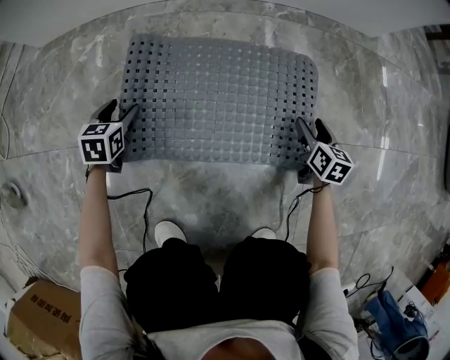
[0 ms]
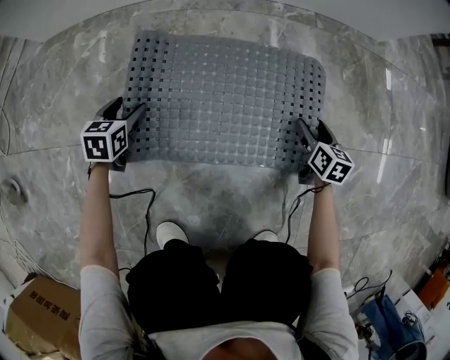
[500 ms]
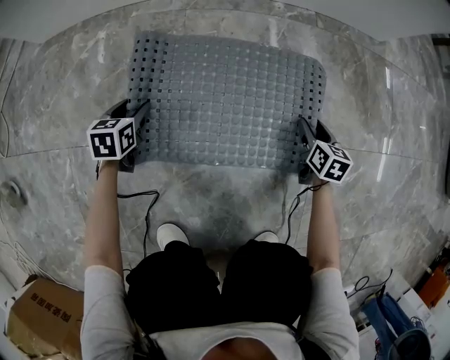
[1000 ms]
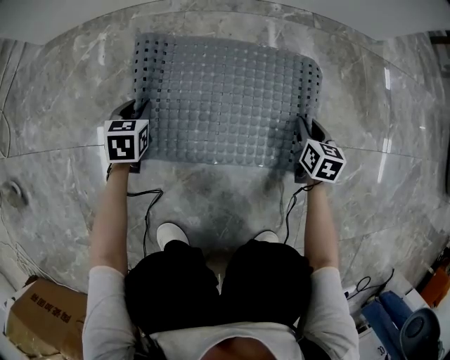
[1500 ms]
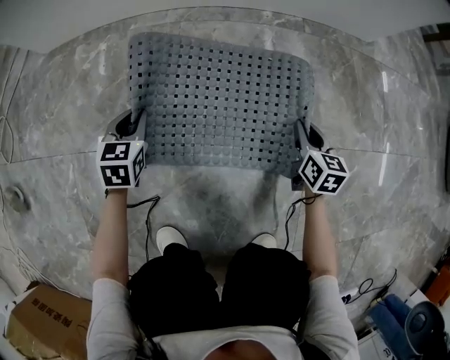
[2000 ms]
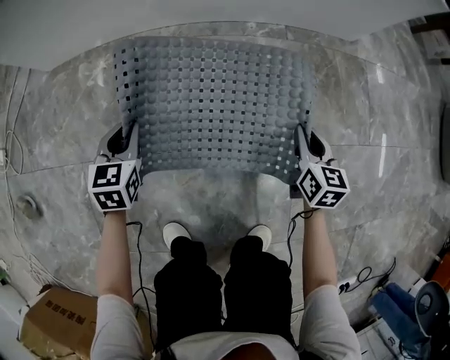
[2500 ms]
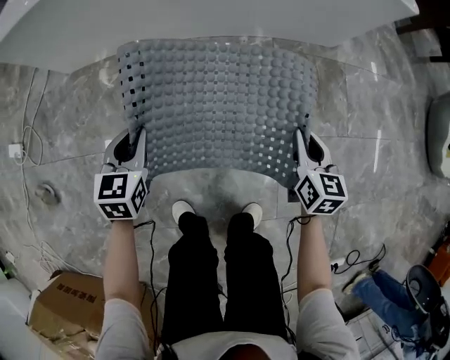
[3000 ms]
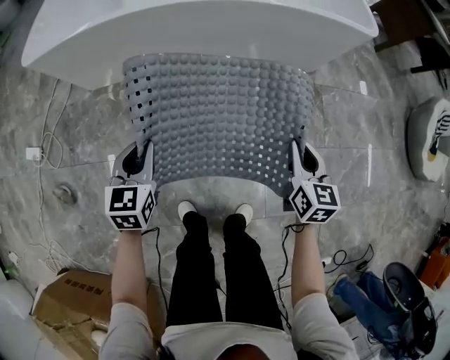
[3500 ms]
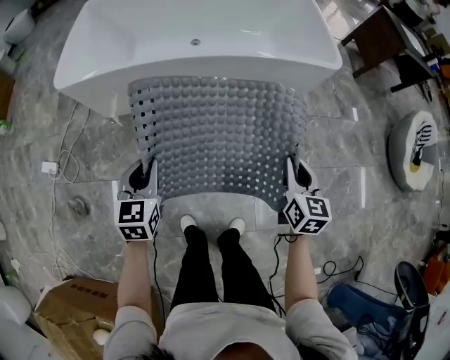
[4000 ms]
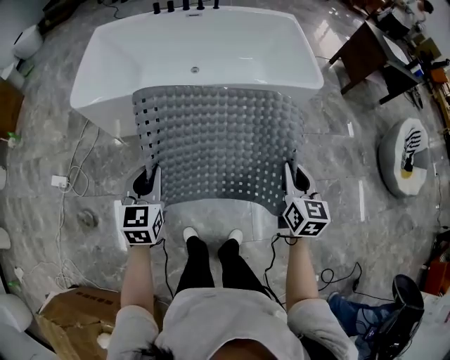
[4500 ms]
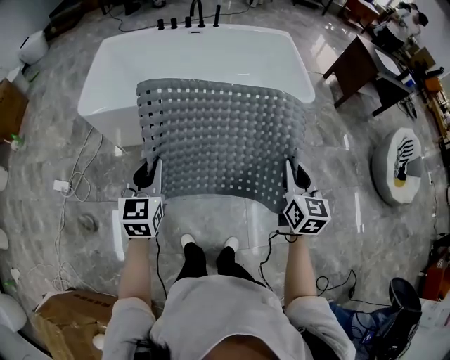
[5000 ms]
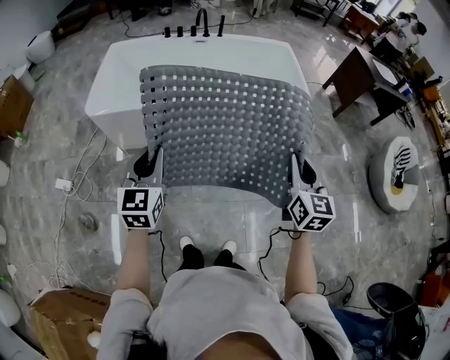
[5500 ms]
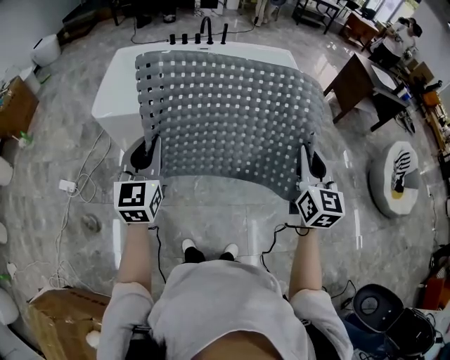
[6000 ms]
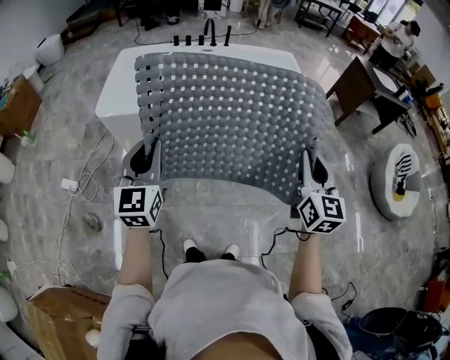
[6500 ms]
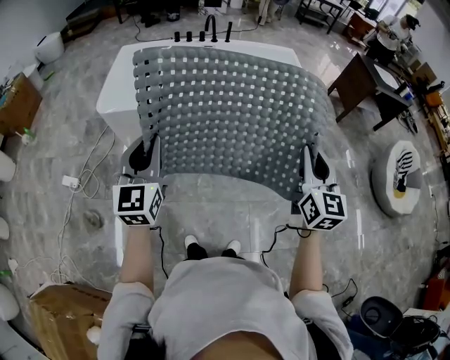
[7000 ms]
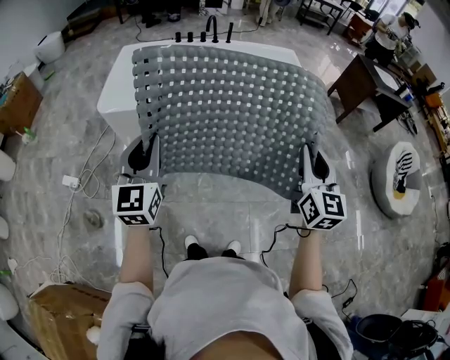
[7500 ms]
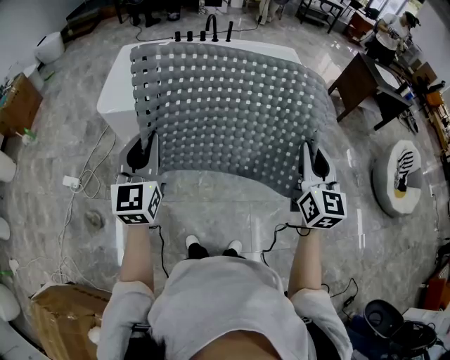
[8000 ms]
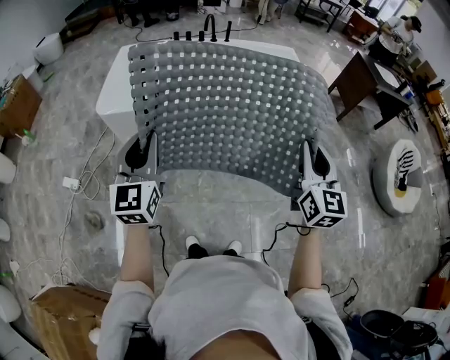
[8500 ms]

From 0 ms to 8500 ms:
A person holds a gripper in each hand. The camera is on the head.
From 0 ms to 2000 ms: The left gripper heads to the right and upward, covering about 10 cm, and closes up, while the right gripper moves approximately 5 cm, and closes.
From 2000 ms to 4000 ms: The grippers both shift upward by about 70 cm.
From 4000 ms to 6500 ms: Both grippers travel together upward, roughly 35 cm. The right gripper turns by some 20 degrees. The left gripper swivels roughly 30 degrees.
From 6500 ms to 8500 ms: There are only small adjustments of the grippers.

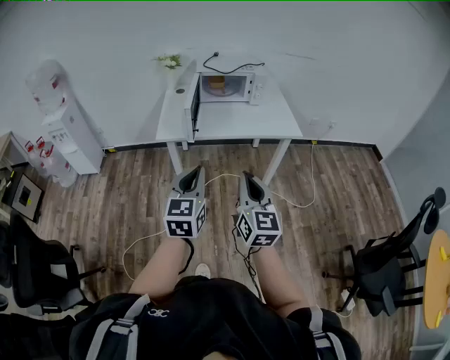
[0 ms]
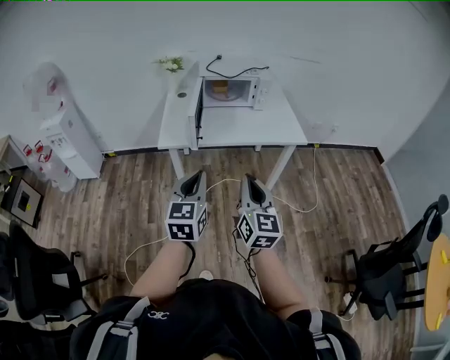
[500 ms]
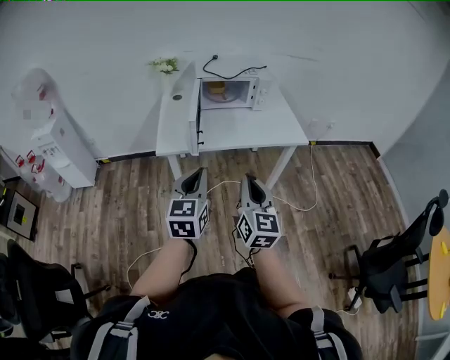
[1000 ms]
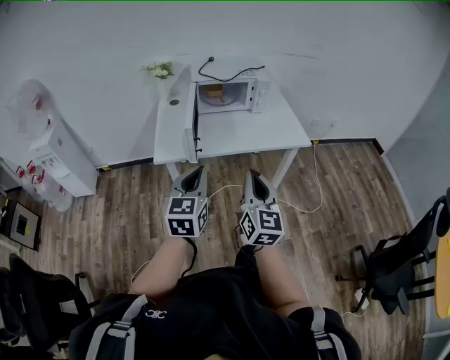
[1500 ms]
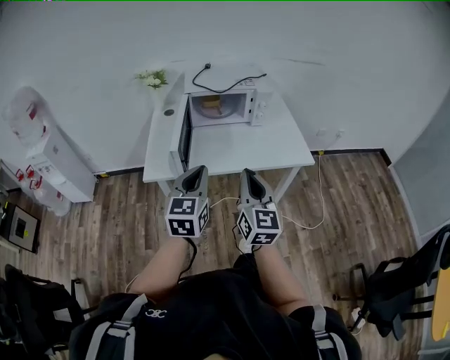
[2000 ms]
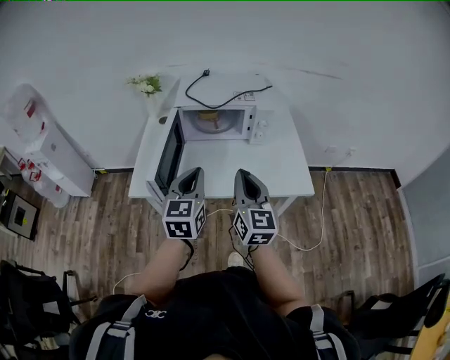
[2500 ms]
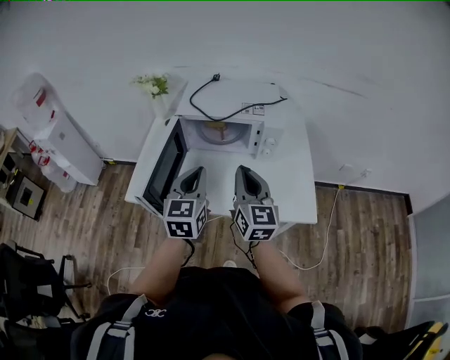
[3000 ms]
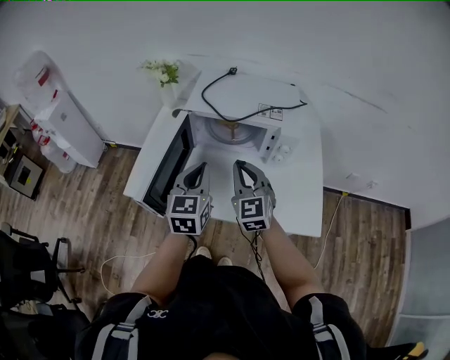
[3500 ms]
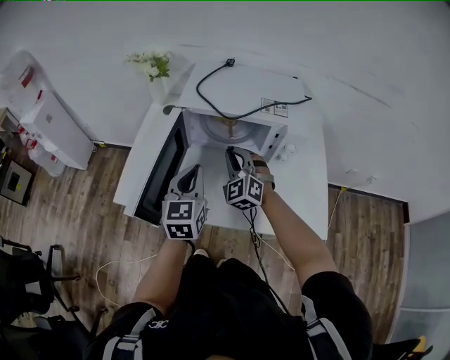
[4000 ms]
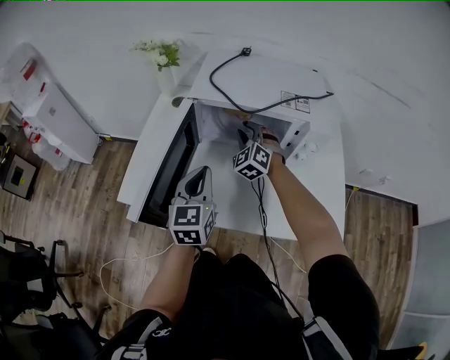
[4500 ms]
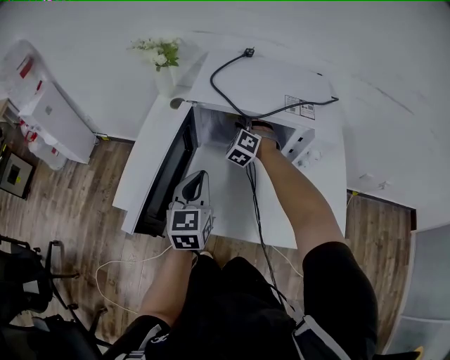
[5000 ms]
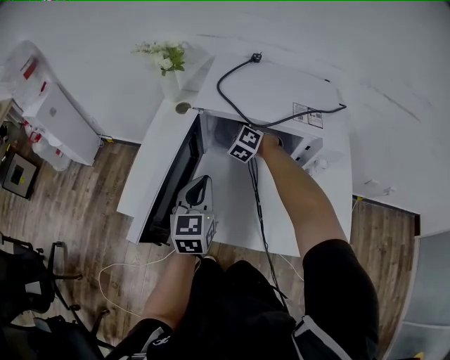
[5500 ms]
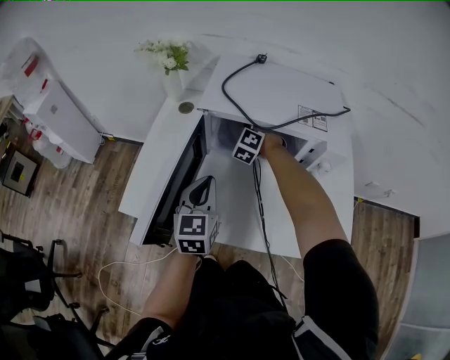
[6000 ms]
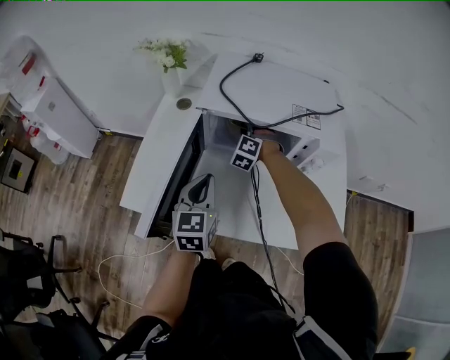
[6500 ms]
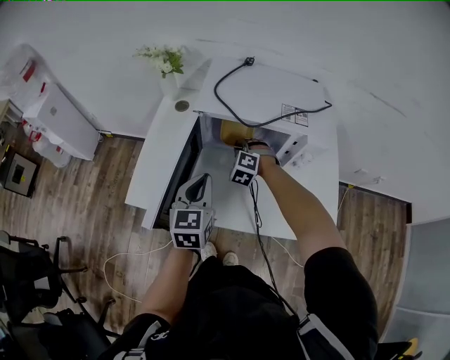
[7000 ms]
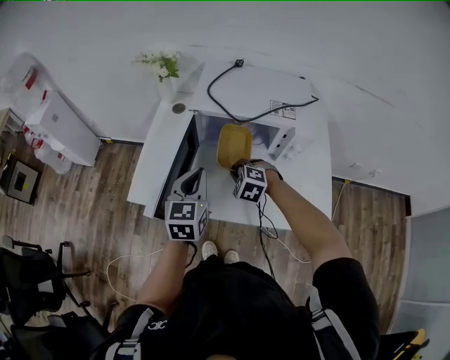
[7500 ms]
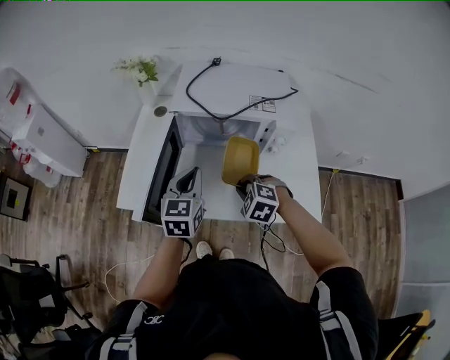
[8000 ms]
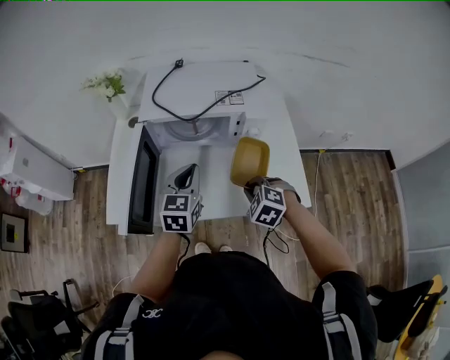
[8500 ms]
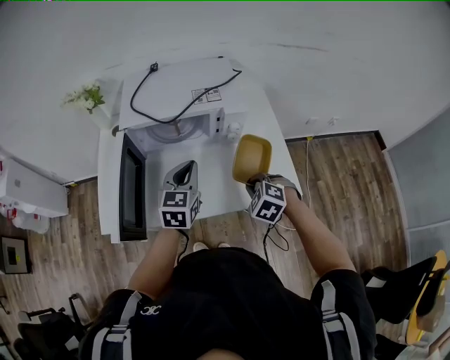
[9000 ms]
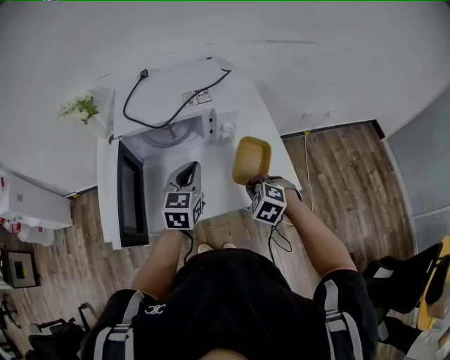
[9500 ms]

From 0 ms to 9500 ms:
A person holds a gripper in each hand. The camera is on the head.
From 0 ms to 2000 ms: Both grippers move forward, about 30 cm.
From 2000 ms to 4000 ms: The grippers both shift forward by roughly 40 cm. The right gripper rotates around the line of its fingers by about 50 degrees, counterclockwise from behind. The left gripper rotates about 20 degrees.
From 4000 ms to 5500 ms: The right gripper moves forward, about 20 cm, rotates roughly 20 degrees, and opens up, while the left gripper moves downward, about 10 cm.
From 5500 ms to 7500 ms: The left gripper moves upward and backward, roughly 10 cm. Meanwhile the right gripper moves backward, about 25 cm, turns by about 40 degrees, and closes.
From 7500 ms to 9500 ms: The left gripper moves about 20 cm, and swivels approximately 20 degrees. The right gripper moves about 25 cm, and changes its angle by approximately 30 degrees.

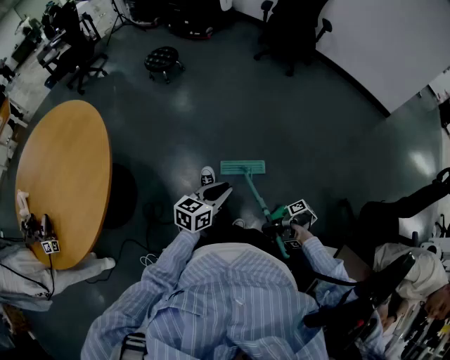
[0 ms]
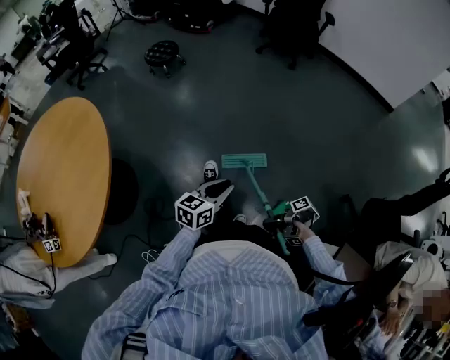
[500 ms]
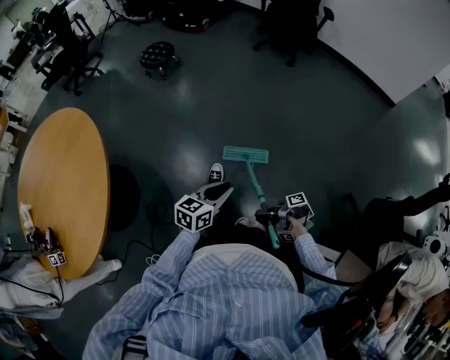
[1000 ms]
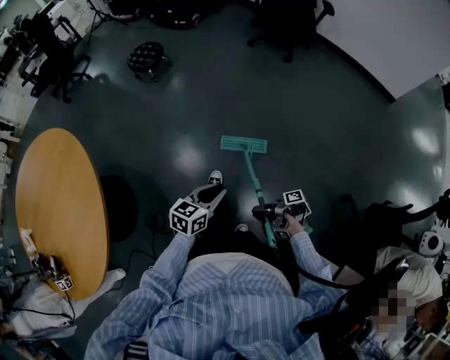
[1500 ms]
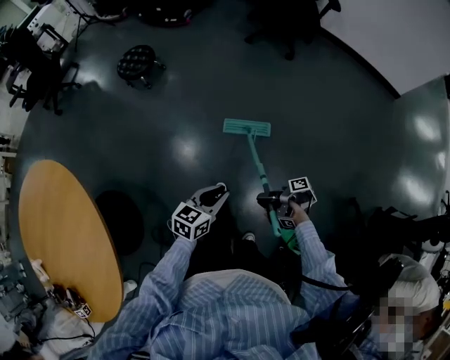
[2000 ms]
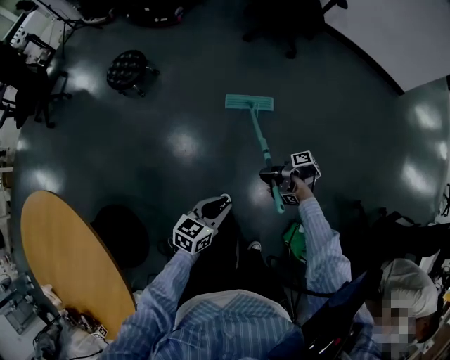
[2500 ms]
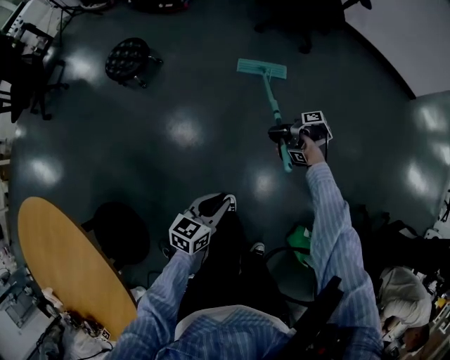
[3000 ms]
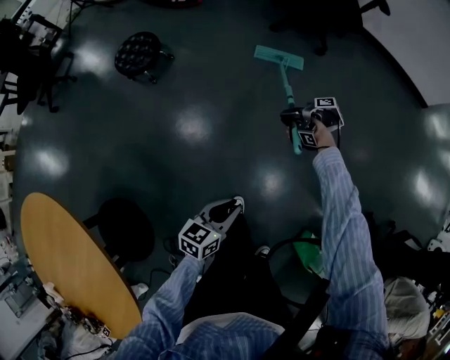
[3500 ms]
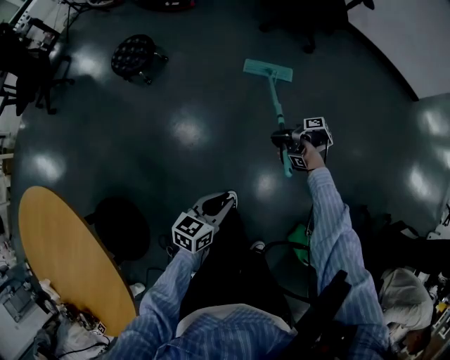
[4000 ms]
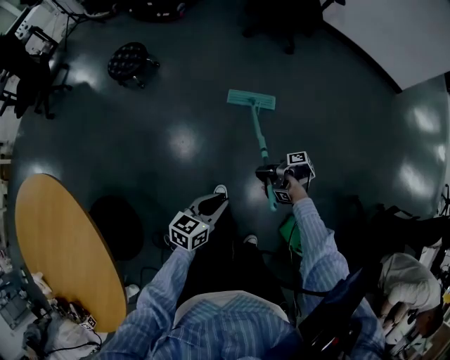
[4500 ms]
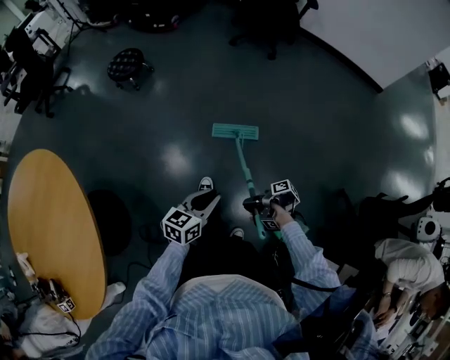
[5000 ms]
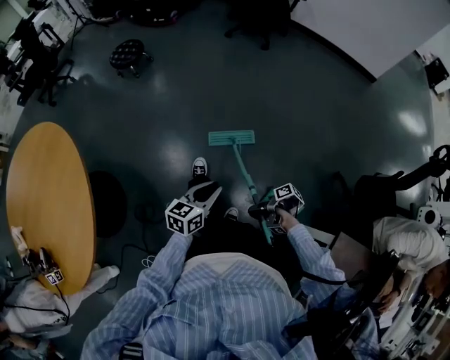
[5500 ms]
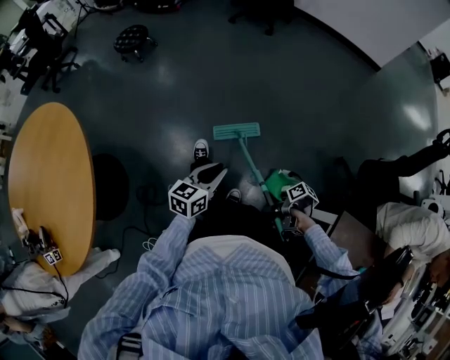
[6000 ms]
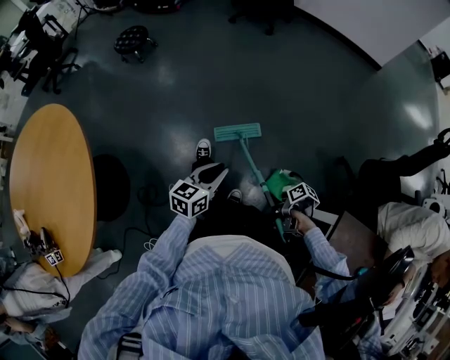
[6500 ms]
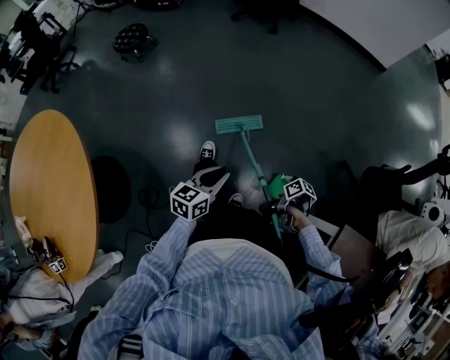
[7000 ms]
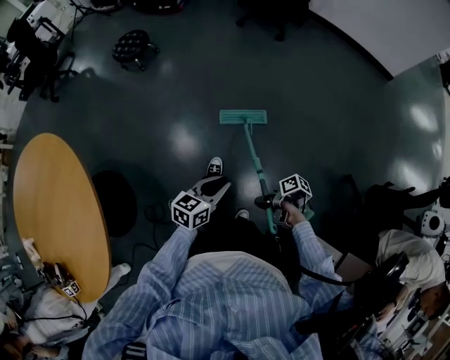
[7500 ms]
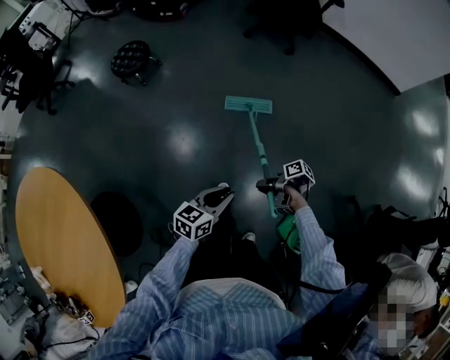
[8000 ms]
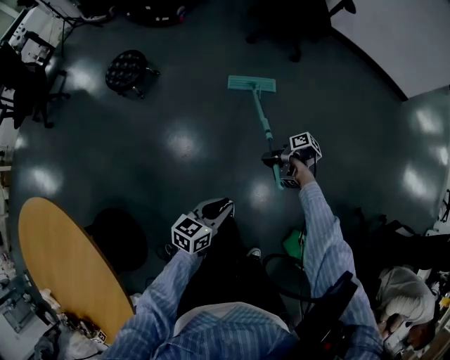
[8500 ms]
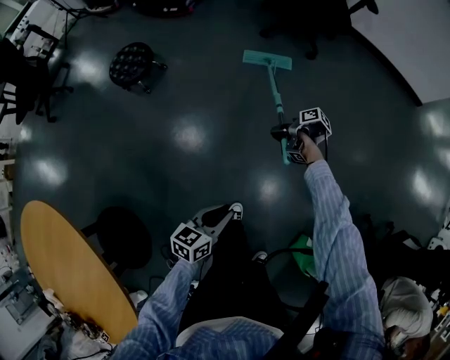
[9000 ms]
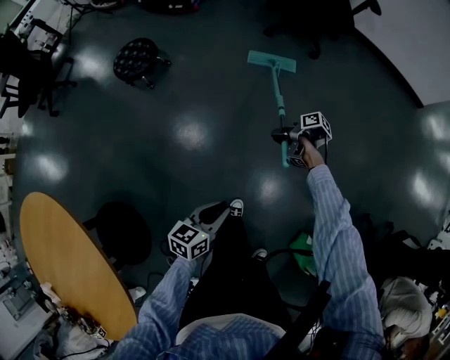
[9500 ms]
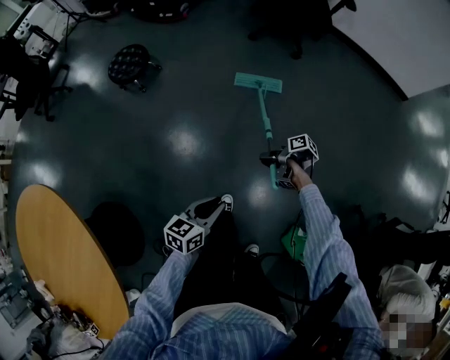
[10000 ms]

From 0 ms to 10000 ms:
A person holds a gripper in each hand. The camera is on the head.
From 0 ms to 2000 ms: The left gripper ends up approximately 30 cm from where it was.
From 2000 ms to 4000 ms: The left gripper shifts by roughly 15 cm.
From 4000 ms to 6000 ms: The left gripper shifts by roughly 40 cm.
From 6000 ms to 8000 ms: The left gripper moves approximately 30 cm.
